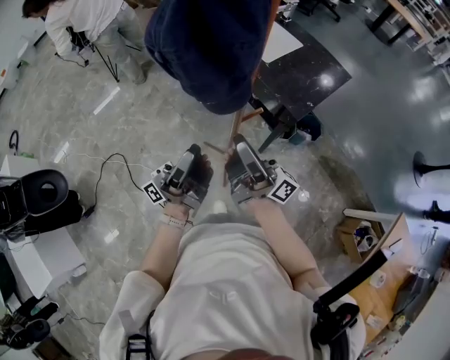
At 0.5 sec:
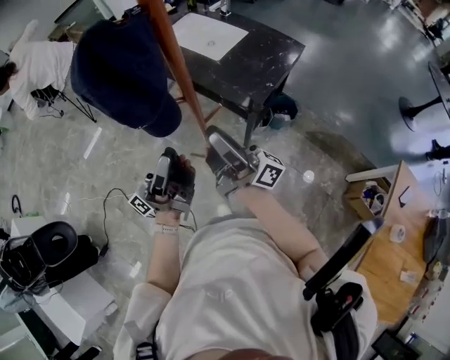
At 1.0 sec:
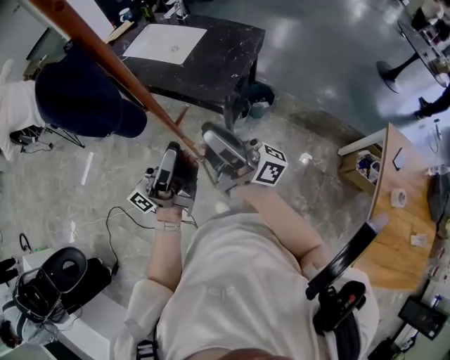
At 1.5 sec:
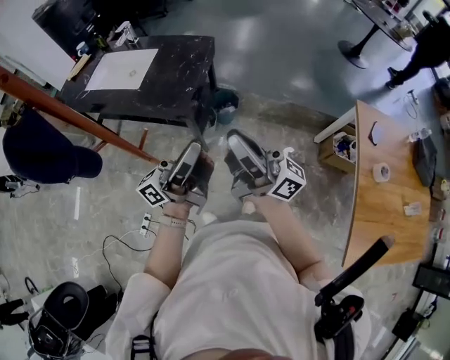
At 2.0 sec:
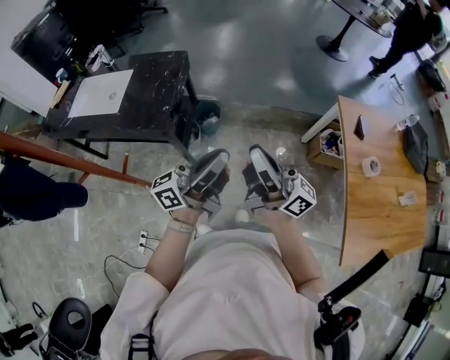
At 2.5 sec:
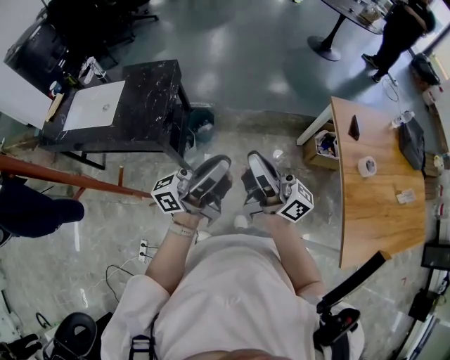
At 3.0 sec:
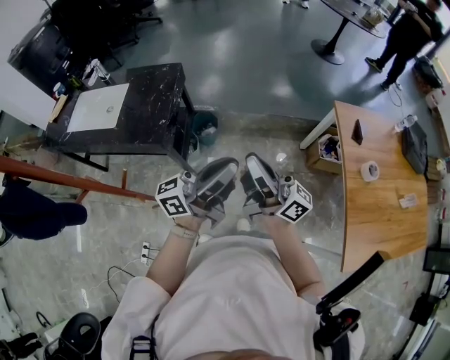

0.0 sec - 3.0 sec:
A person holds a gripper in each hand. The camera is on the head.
0.0 sec - 1.5 sec: The right gripper shifts by about 35 cm, and swivels approximately 40 degrees; the left gripper moves some 35 cm, and rotates approximately 40 degrees.
1.5 sec - 3.0 sec: Both grippers move to the right, approximately 15 cm.

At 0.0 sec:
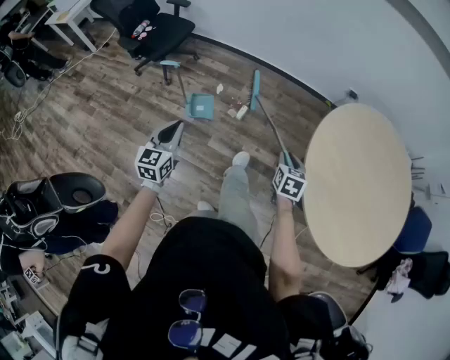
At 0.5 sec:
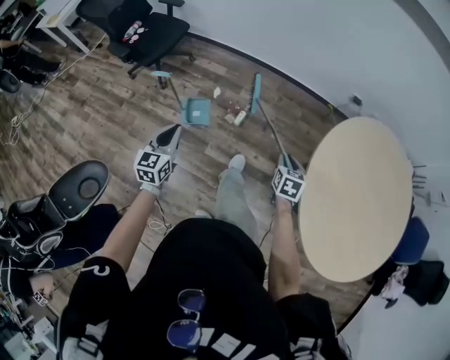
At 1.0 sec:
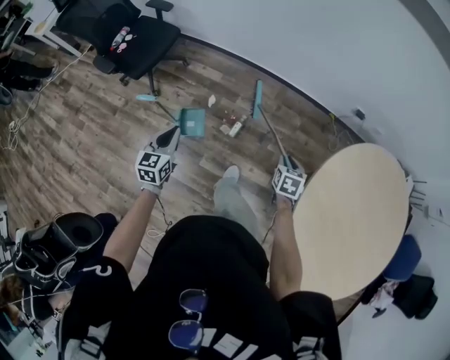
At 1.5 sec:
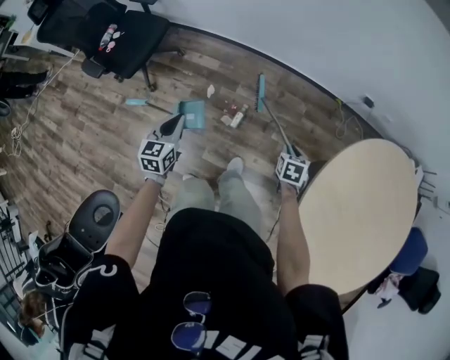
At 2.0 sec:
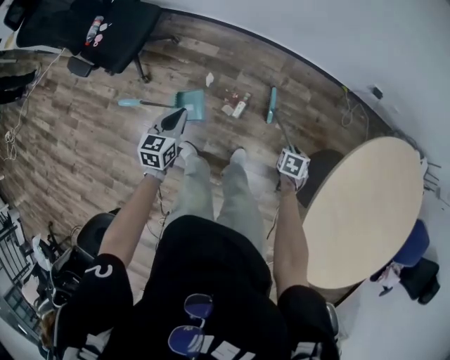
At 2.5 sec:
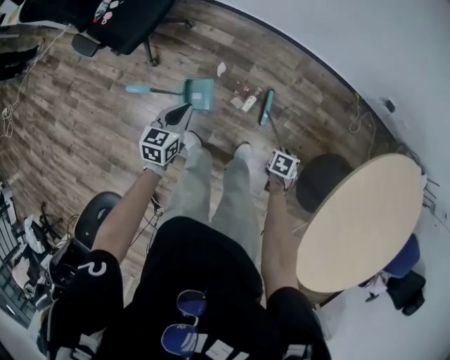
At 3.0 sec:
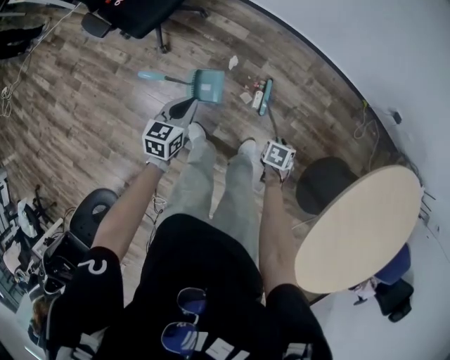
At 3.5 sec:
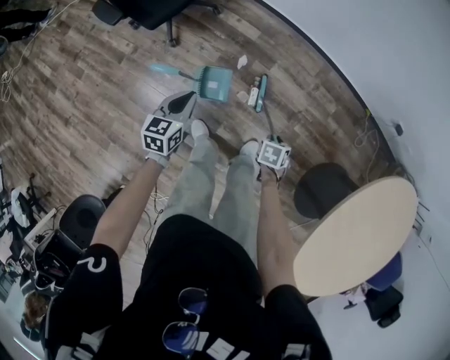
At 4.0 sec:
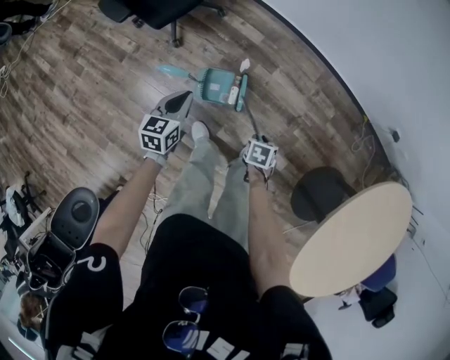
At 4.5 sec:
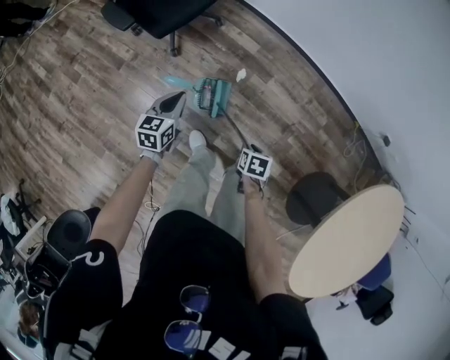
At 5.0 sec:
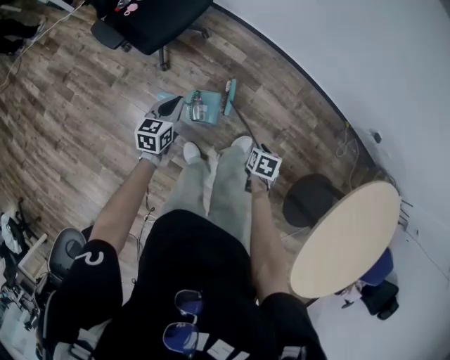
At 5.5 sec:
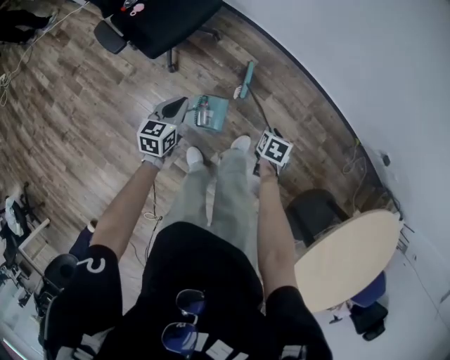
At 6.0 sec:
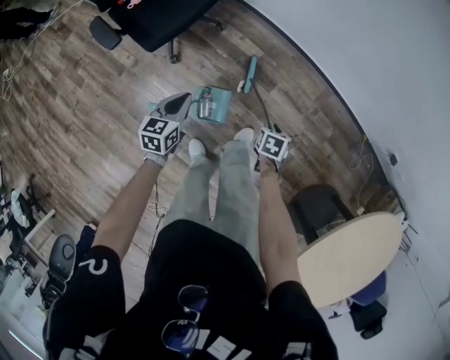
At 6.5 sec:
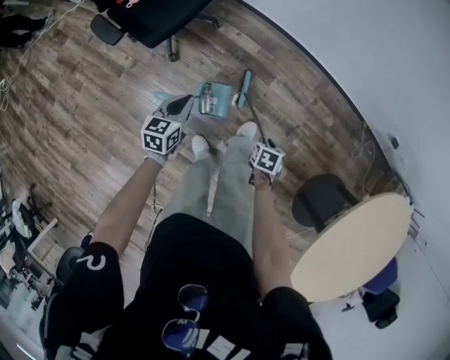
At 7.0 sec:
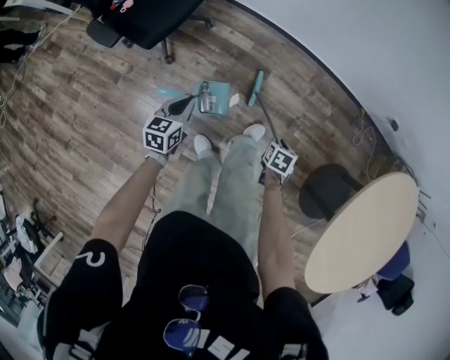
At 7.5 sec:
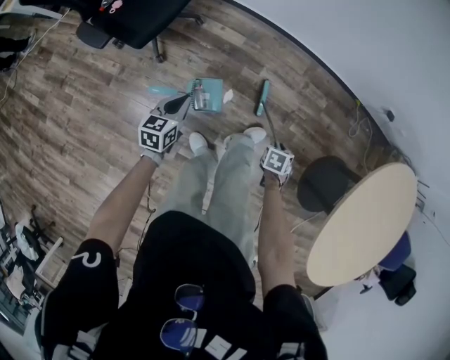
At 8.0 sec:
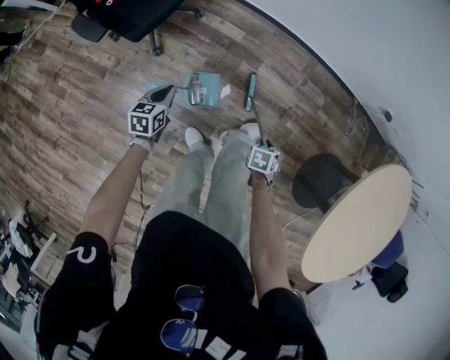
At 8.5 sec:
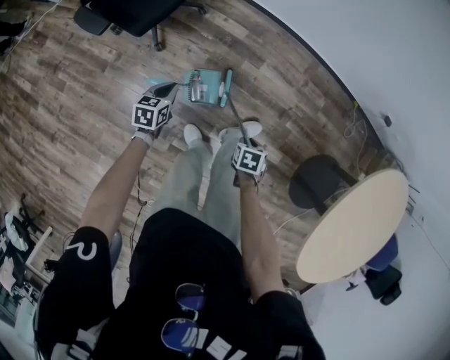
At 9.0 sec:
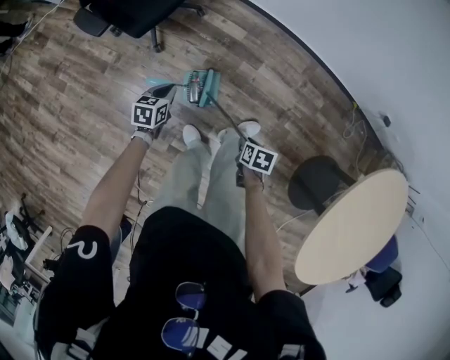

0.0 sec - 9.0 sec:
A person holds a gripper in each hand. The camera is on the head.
0.0 sec - 2.0 sec: The right gripper is displaced forward and downward by roughly 40 cm, and tilts its fingers some 30 degrees downward; the left gripper goes approximately 50 cm forward, and swivels some 20 degrees.
2.0 sec - 4.5 sec: The left gripper shifts by approximately 25 cm, while the right gripper shifts by some 35 cm.
4.5 sec - 7.0 sec: The left gripper moves to the right, roughly 5 cm, and goes forward and returns, some 15 cm each way, while the right gripper travels to the right by roughly 10 cm, and goes forward and returns, some 20 cm each way.
7.0 sec - 9.0 sec: The left gripper moves downward, some 10 cm. The right gripper ends up some 10 cm from where it was.

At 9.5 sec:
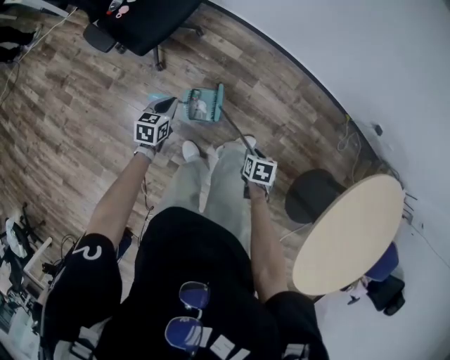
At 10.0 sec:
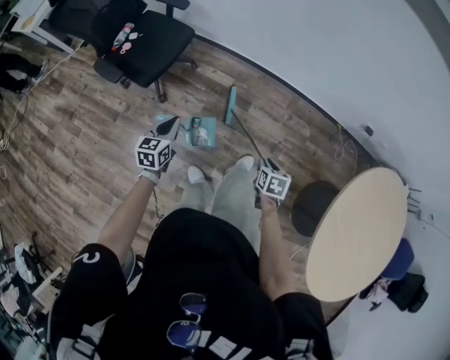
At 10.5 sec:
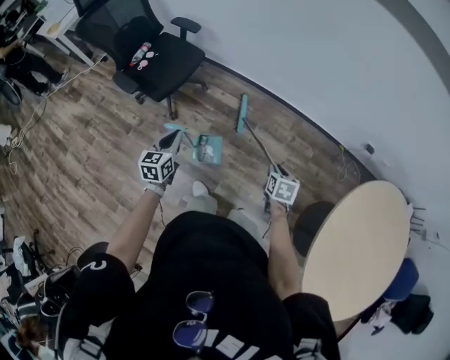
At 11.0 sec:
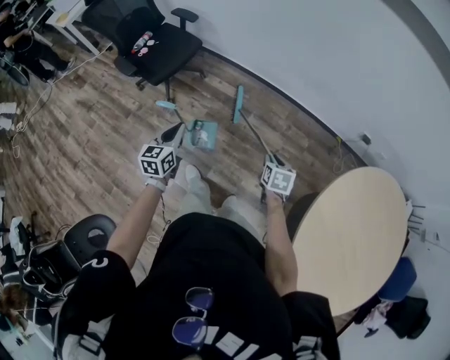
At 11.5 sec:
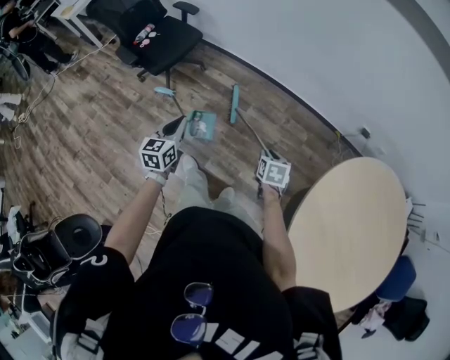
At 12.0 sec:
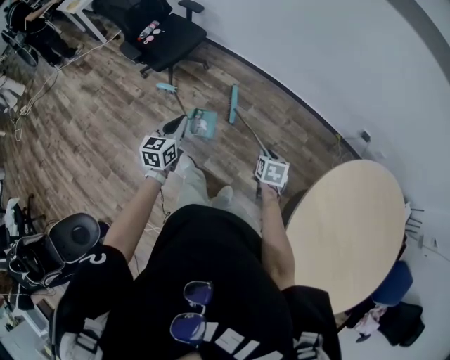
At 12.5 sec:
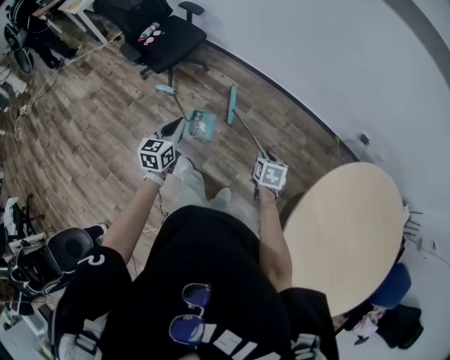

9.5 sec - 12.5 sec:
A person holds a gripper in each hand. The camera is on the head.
9.5 sec - 11.0 sec: The right gripper travels upward and to the right by roughly 25 cm, and turns by about 20 degrees, while the left gripper heads upward, backward and to the right, covering roughly 35 cm, and changes its angle by some 20 degrees.
11.0 sec - 12.5 sec: Both grippers travel together backward, approximately 5 cm.

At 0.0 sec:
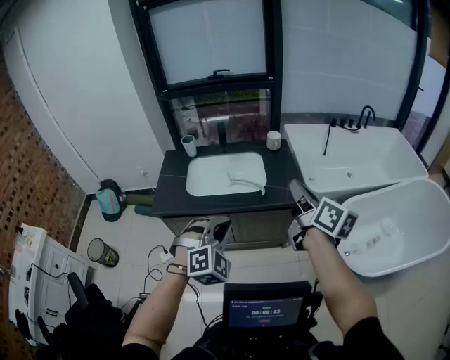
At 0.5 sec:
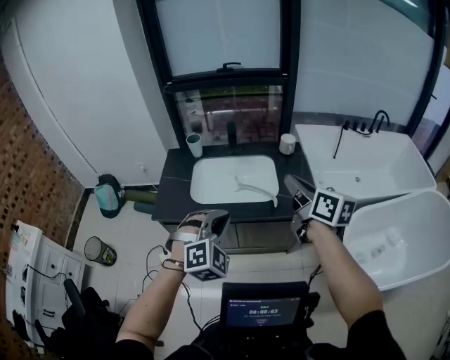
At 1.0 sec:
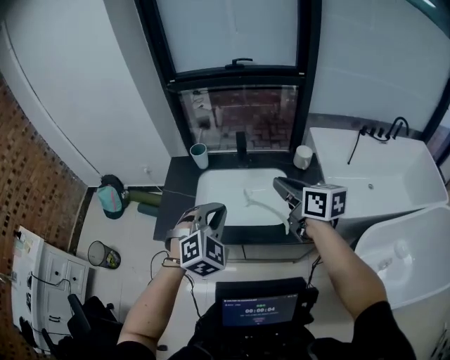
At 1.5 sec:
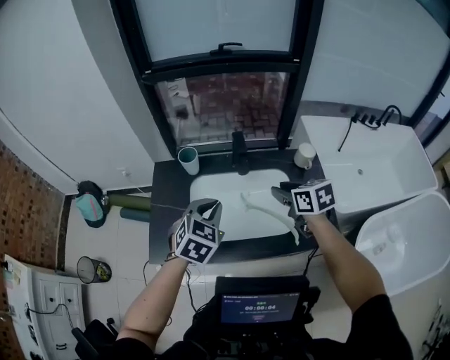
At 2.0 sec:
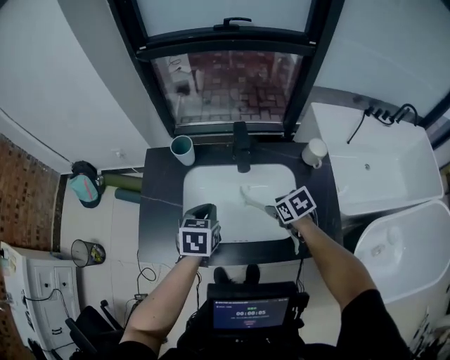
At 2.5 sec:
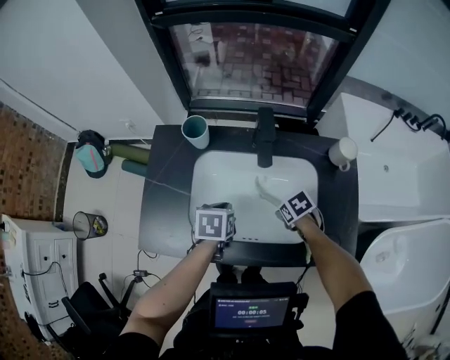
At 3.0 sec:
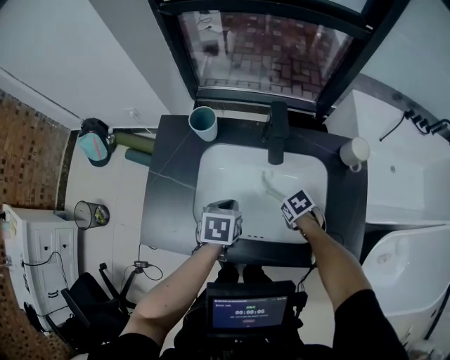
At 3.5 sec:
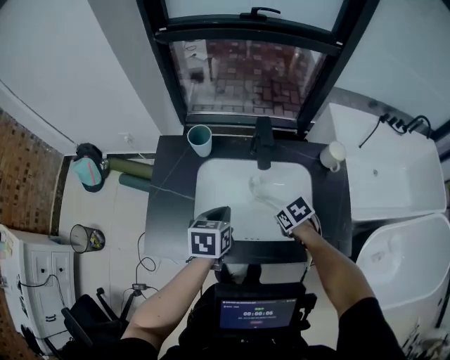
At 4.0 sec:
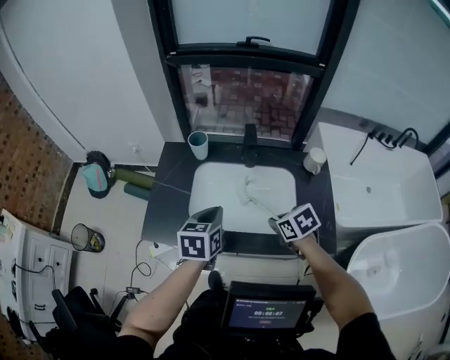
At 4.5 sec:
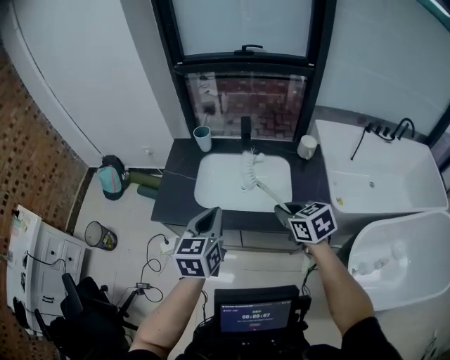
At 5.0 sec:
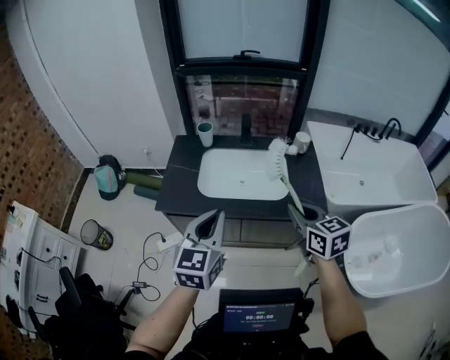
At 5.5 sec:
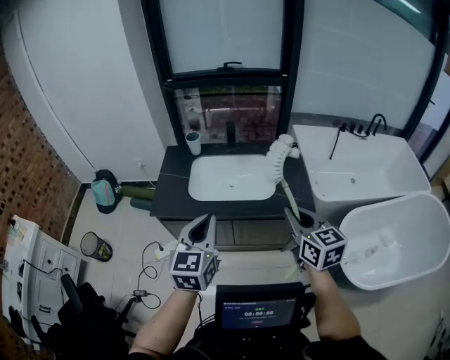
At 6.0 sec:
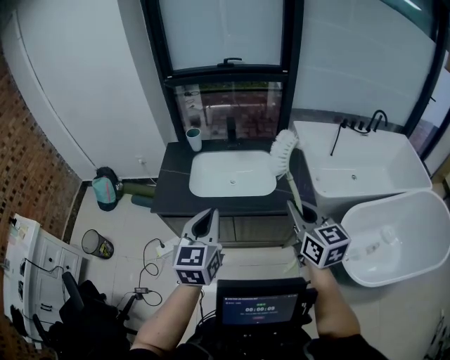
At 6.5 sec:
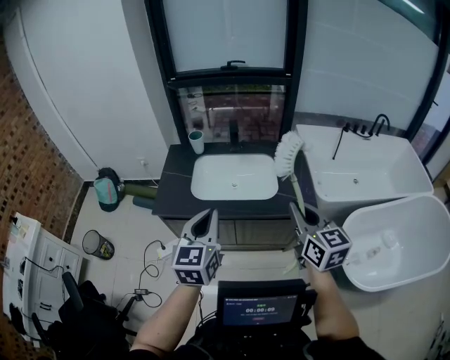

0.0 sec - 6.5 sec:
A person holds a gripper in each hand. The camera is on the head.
0.0 sec - 2.0 sec: The two grippers travel together, forward, about 70 cm. The right gripper travels downward by about 40 cm, tips its fingers downward by roughly 60 degrees, and opens up; the left gripper rotates around the line of its fingers by roughly 70 degrees, counterclockwise from behind.
2.0 sec - 4.5 sec: The right gripper shifts by roughly 35 cm, rotates roughly 30 degrees, and closes up; the left gripper changes place by approximately 35 cm, and changes its angle by some 30 degrees.
4.5 sec - 6.5 sec: The right gripper is displaced backward and upward by about 25 cm, and tips its fingers upward by about 30 degrees; the left gripper goes some 20 cm backward.

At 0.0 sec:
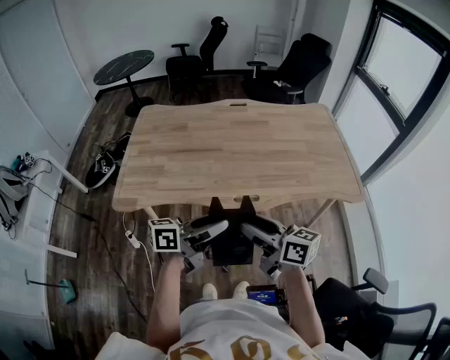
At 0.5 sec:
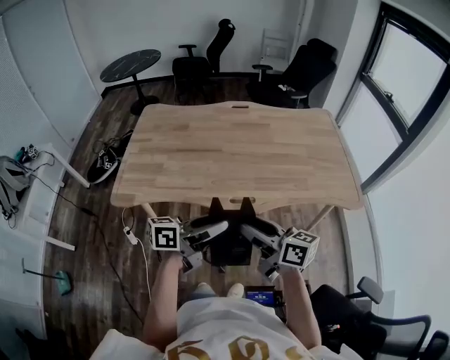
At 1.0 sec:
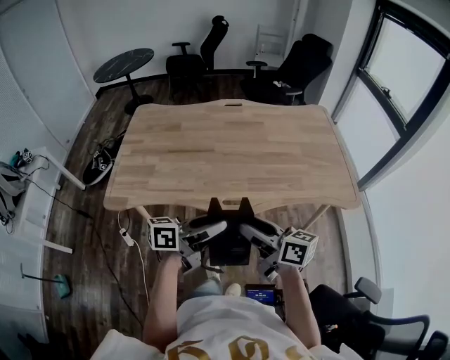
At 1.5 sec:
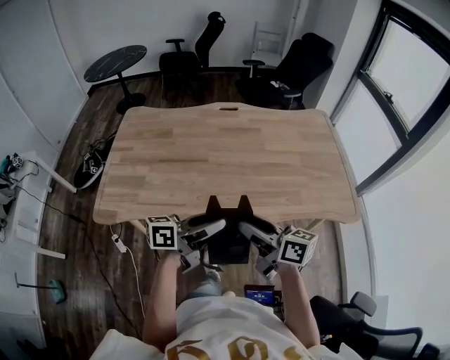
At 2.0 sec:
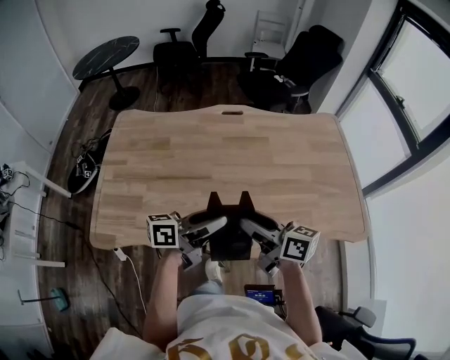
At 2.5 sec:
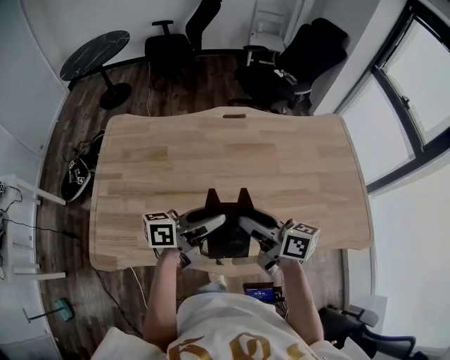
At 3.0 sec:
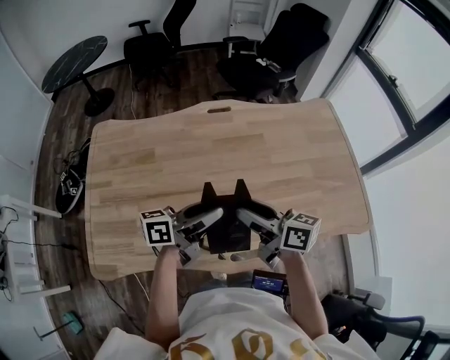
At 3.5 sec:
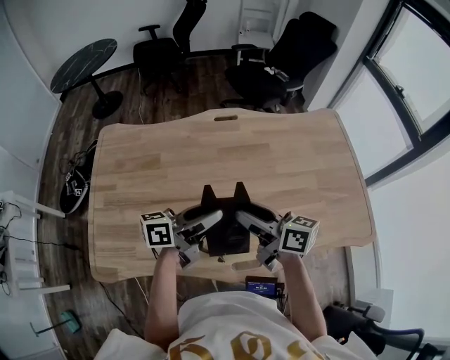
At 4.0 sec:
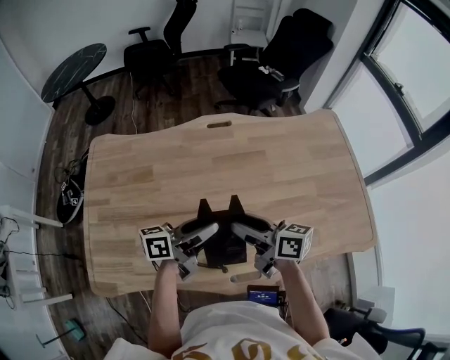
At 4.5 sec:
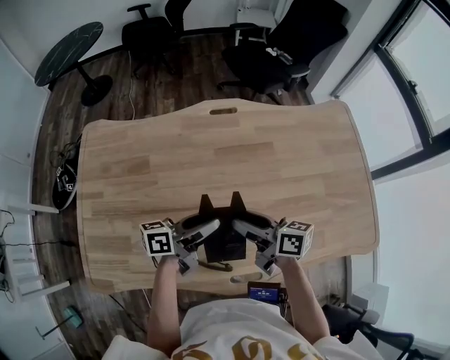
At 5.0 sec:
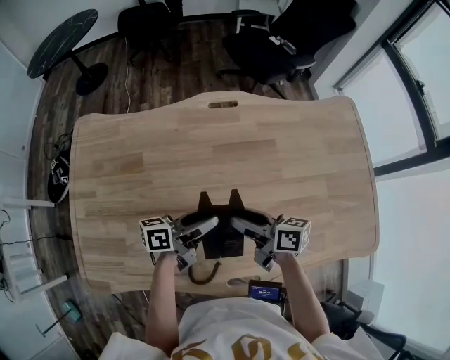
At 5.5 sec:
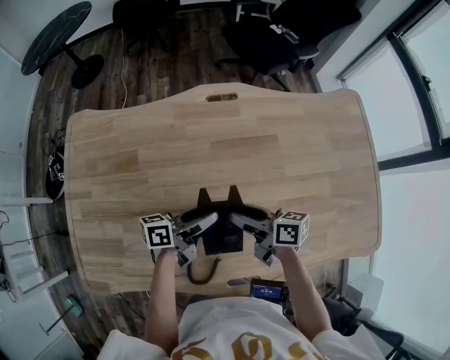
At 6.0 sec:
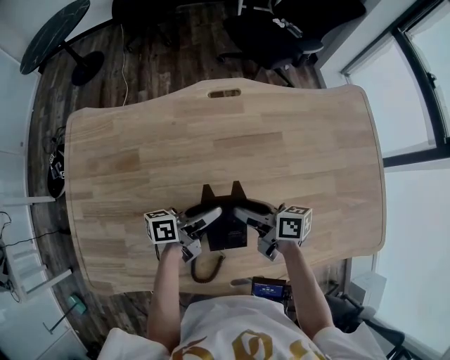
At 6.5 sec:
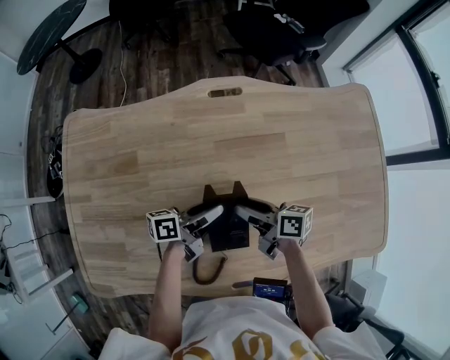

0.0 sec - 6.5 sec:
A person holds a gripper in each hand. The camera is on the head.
0.0 sec - 2.0 sec: The grippers both shift forward by some 25 cm.
2.0 sec - 4.5 sec: The grippers both shift forward and downward by roughly 20 cm.
4.5 sec - 6.5 sec: Both grippers travel together downward and forward, some 15 cm.
